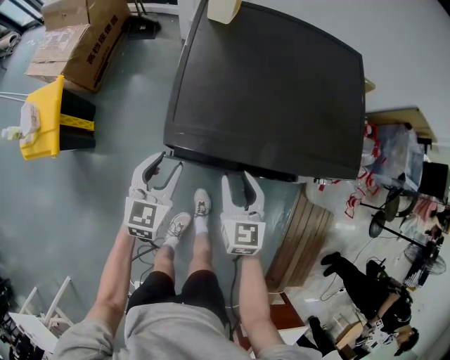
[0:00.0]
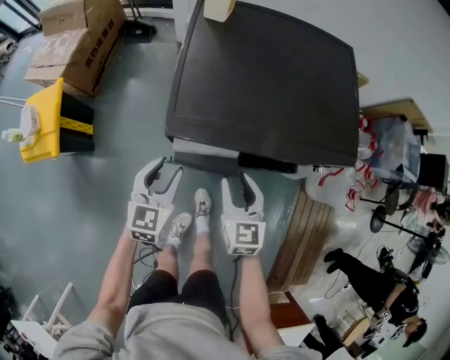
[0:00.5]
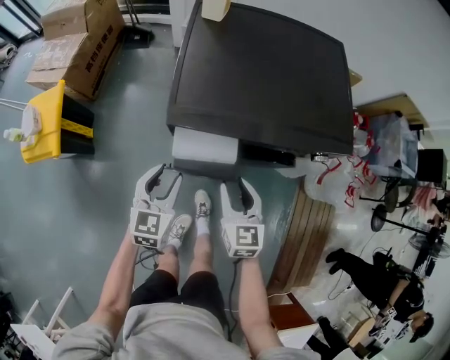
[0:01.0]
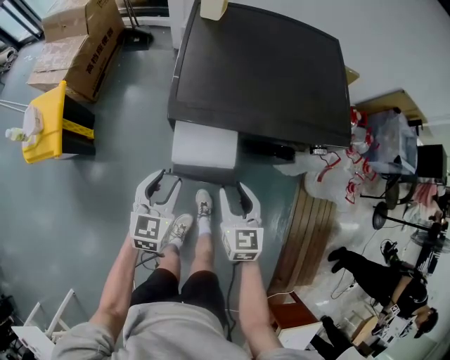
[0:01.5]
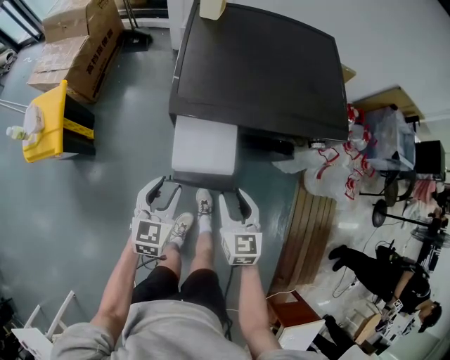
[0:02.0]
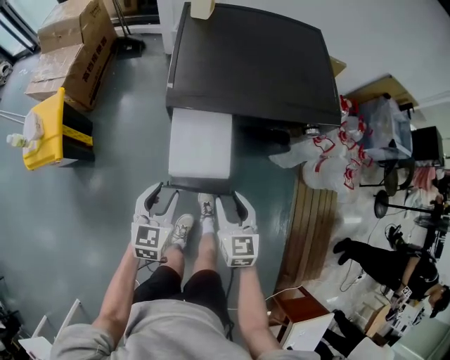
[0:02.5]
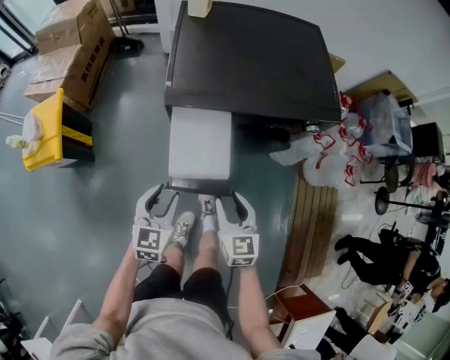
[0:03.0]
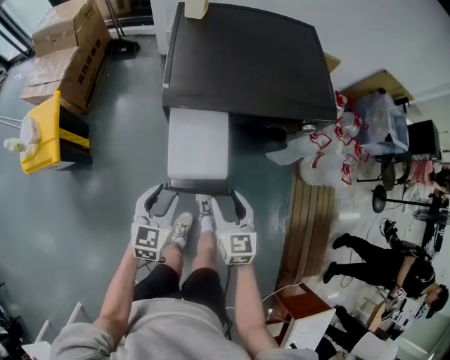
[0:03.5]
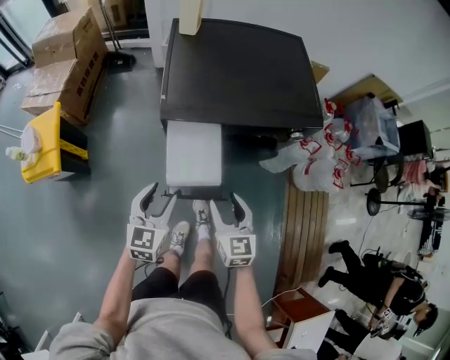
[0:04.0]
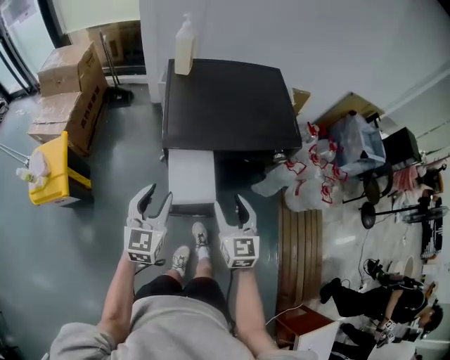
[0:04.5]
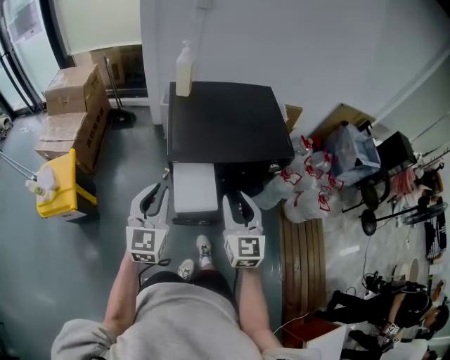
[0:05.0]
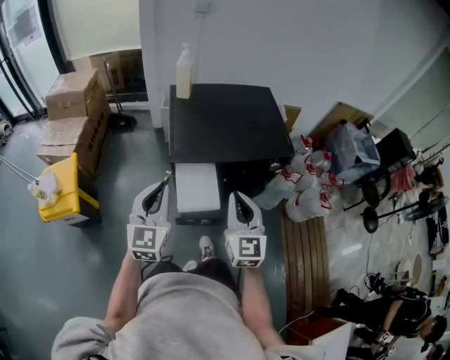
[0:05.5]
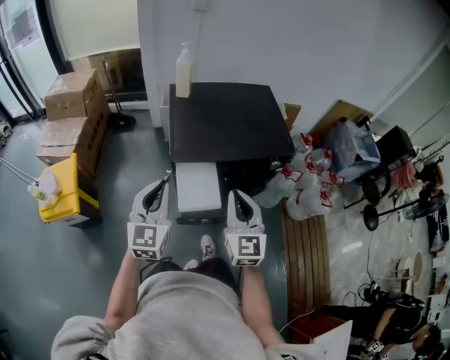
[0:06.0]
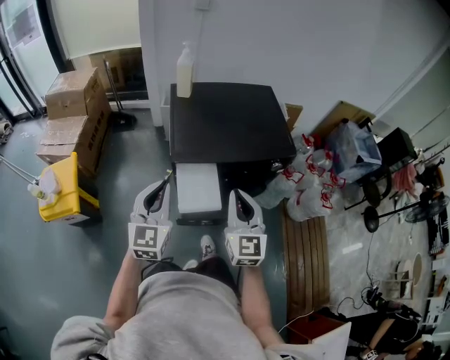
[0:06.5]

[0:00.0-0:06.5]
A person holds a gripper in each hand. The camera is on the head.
0:00.0 to 0:02.0: The grippers both shift backward by roughly 15 cm.
0:02.0 to 0:04.5: Both grippers move upward, approximately 15 cm.
0:04.5 to 0:06.5: Both grippers move upward, approximately 10 cm. The right gripper closes. The left gripper closes.

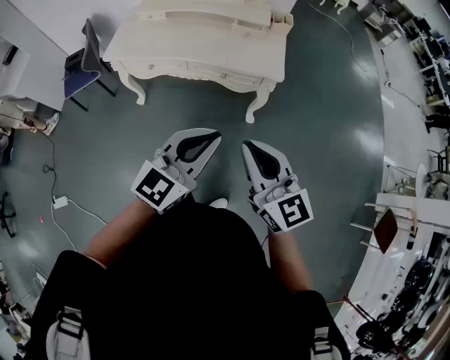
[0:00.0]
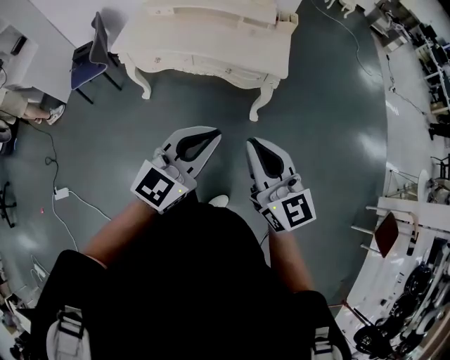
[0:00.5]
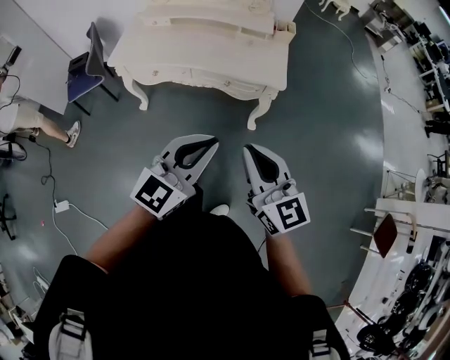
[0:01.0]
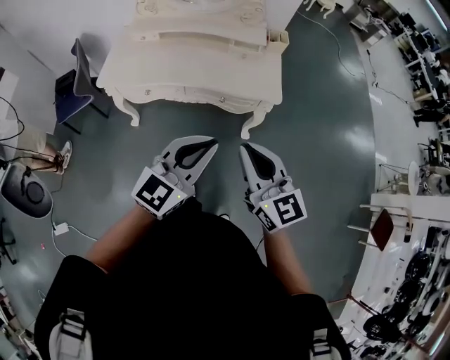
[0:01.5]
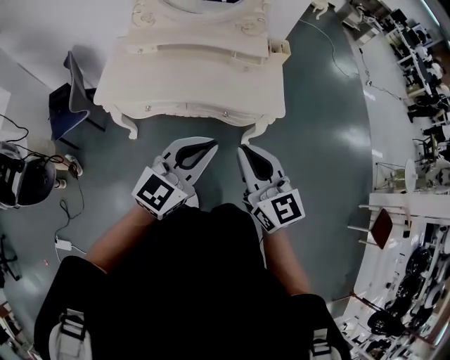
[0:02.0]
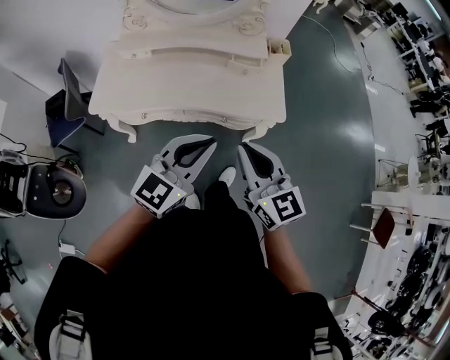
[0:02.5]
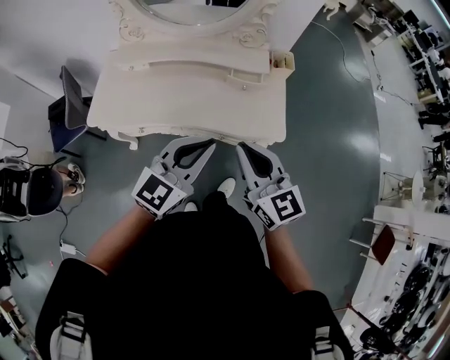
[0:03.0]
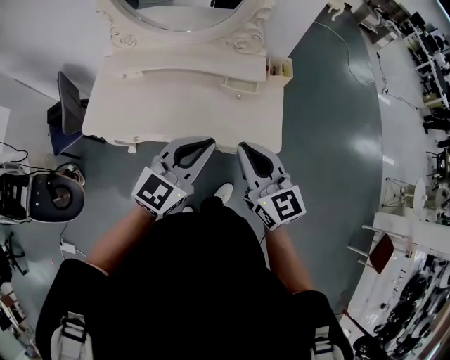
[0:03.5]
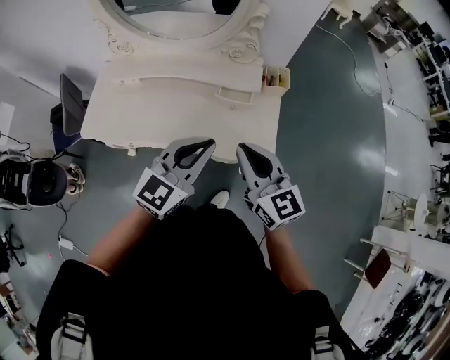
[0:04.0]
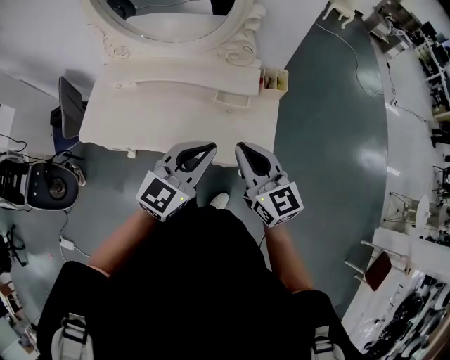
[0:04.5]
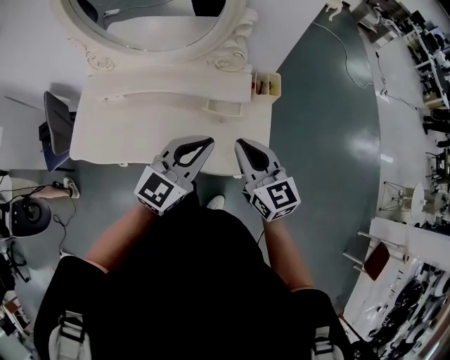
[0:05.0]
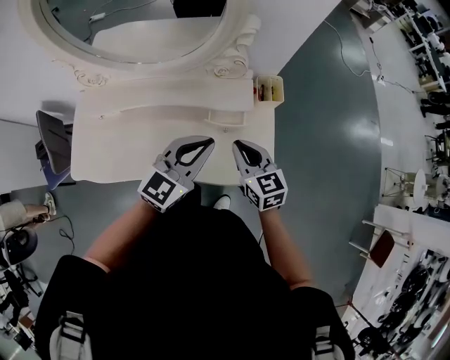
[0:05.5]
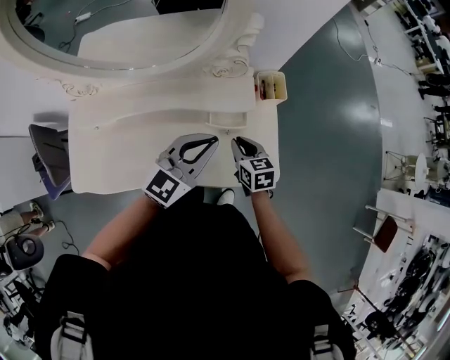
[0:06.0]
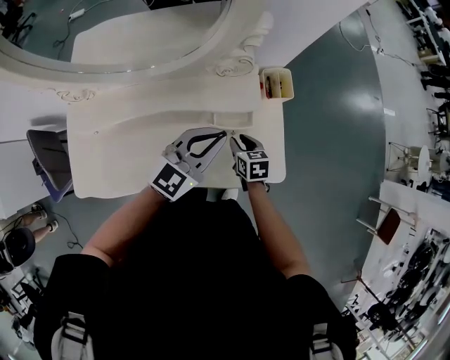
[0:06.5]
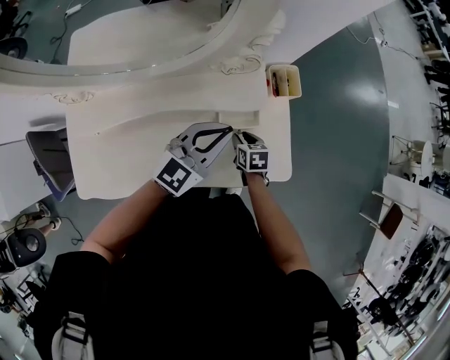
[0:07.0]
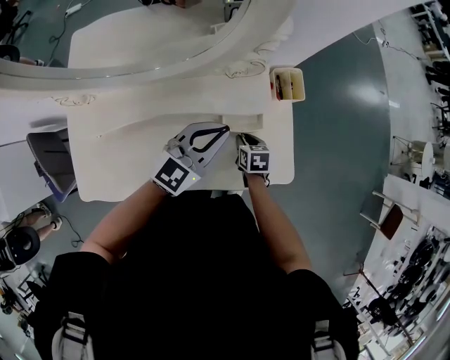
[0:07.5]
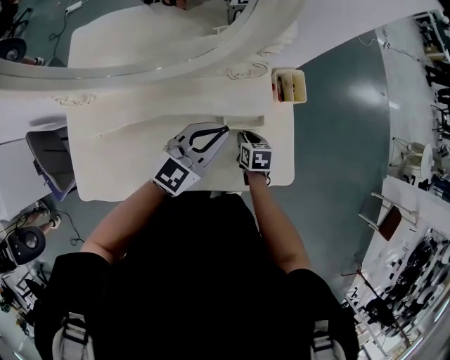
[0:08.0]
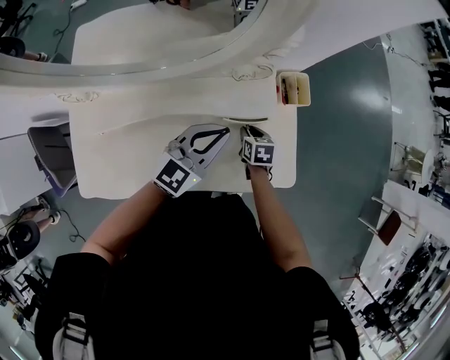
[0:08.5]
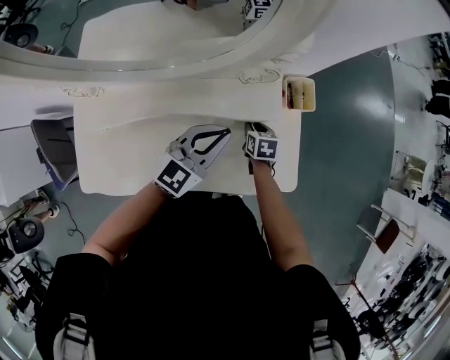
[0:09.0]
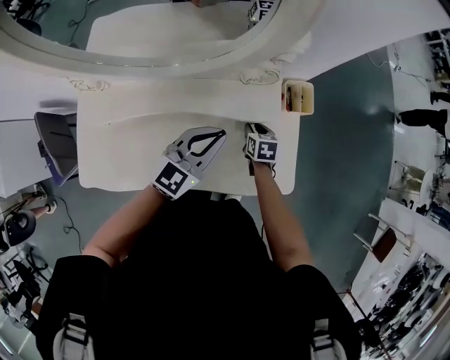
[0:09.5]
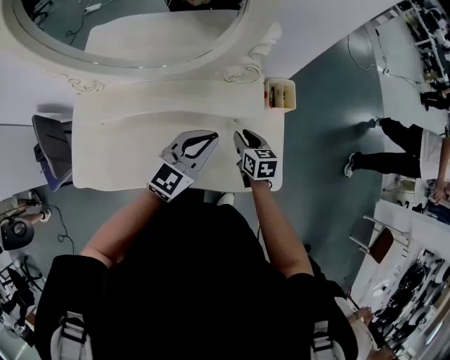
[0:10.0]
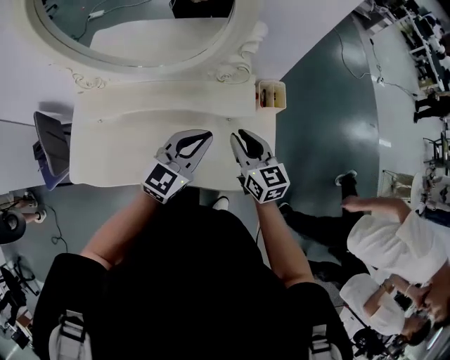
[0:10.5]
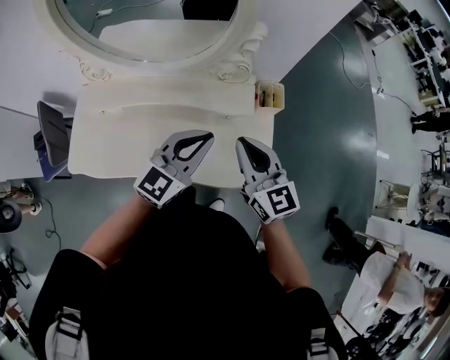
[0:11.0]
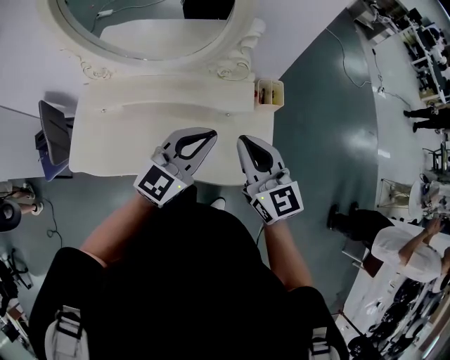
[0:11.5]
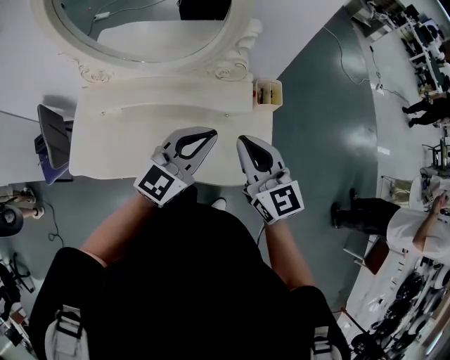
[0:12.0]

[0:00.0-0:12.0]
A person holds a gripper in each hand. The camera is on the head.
0:00.0 to 0:02.0: Both grippers travel together forward and to the left, roughly 20 cm.
0:02.0 to 0:04.0: Both grippers travel together forward, about 25 cm.
0:04.0 to 0:06.0: The right gripper goes roughly 30 cm downward and forward, and points its fingers about 30 degrees further downward; the left gripper moves forward, approximately 20 cm.
0:06.0 to 0:08.0: The left gripper shifts some 5 cm forward; the right gripper is displaced downward by about 10 cm, and changes its angle by roughly 20 degrees.
0:08.0 to 0:10.0: The right gripper is displaced upward by some 10 cm.
0:10.0 to 0:12.0: The left gripper travels upward and backward by roughly 10 cm; the right gripper heads upward and backward, covering roughly 30 cm, tips its fingers upward by about 30 degrees, and closes.

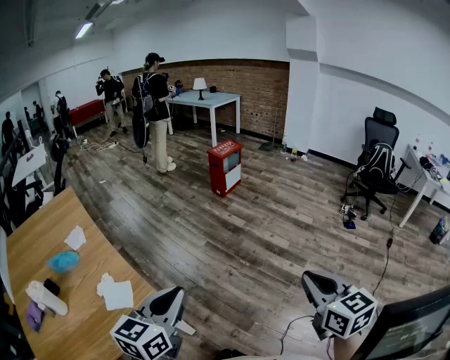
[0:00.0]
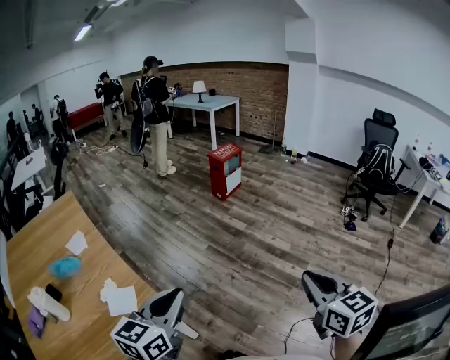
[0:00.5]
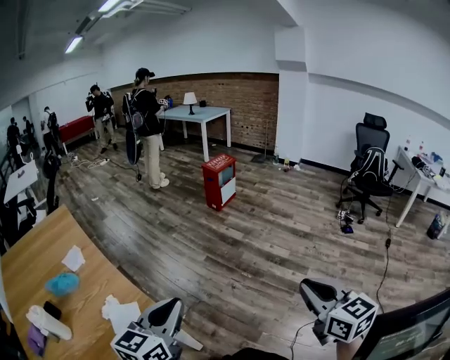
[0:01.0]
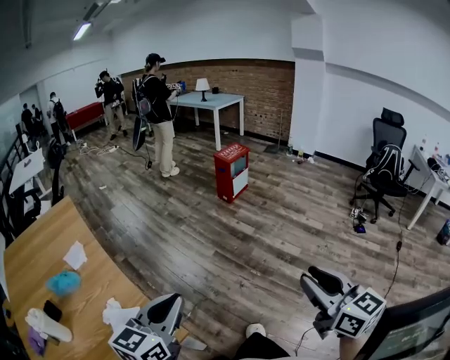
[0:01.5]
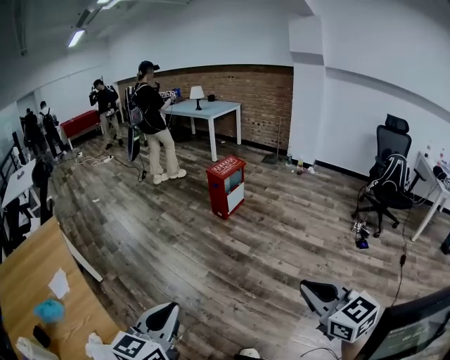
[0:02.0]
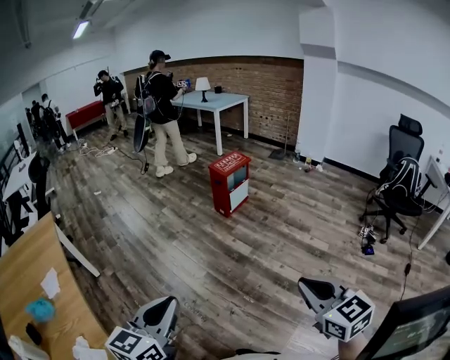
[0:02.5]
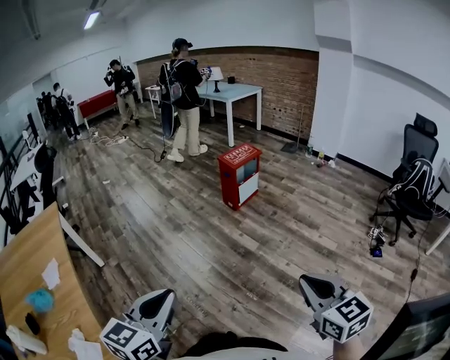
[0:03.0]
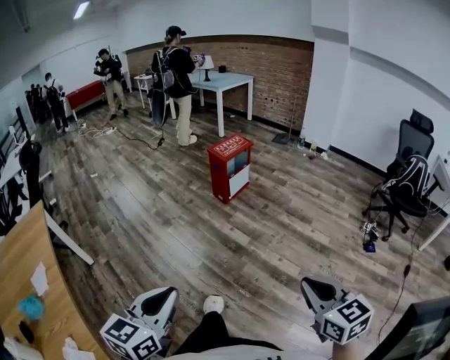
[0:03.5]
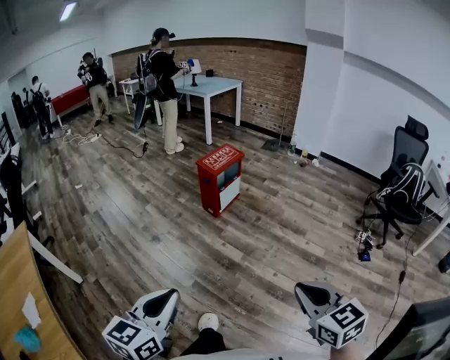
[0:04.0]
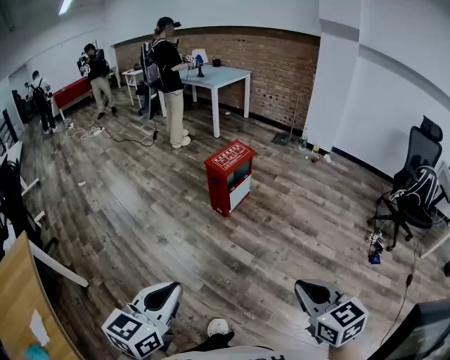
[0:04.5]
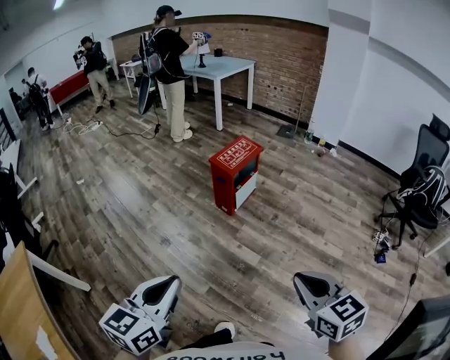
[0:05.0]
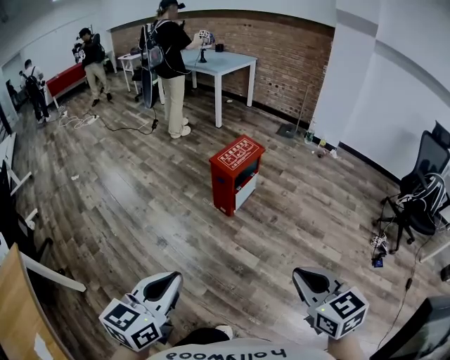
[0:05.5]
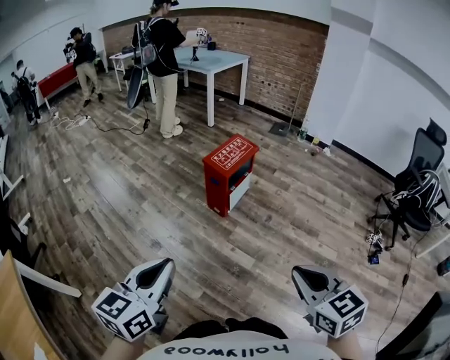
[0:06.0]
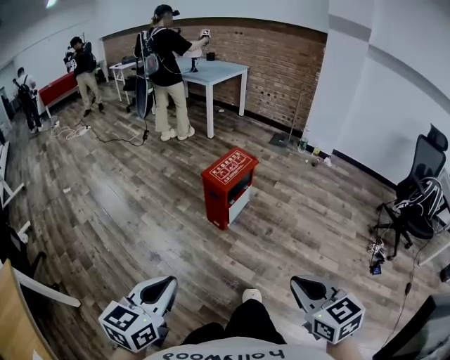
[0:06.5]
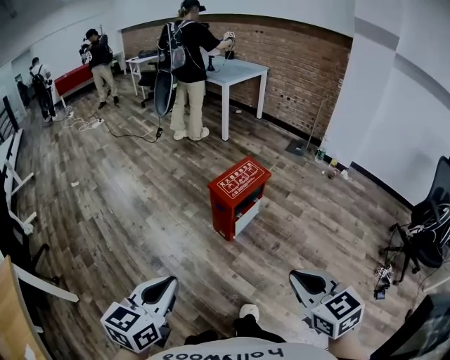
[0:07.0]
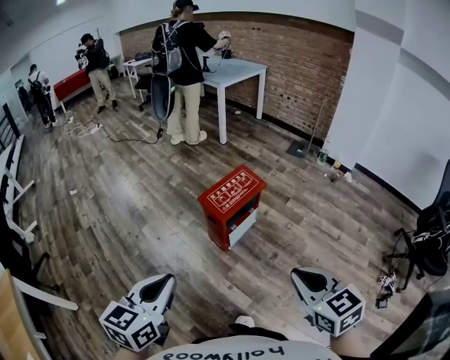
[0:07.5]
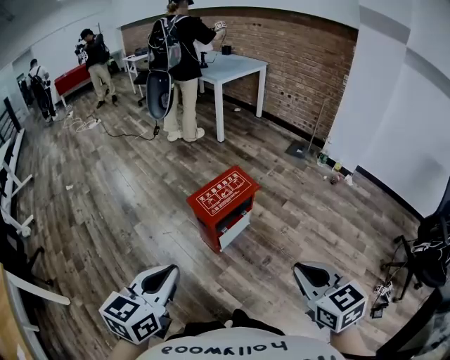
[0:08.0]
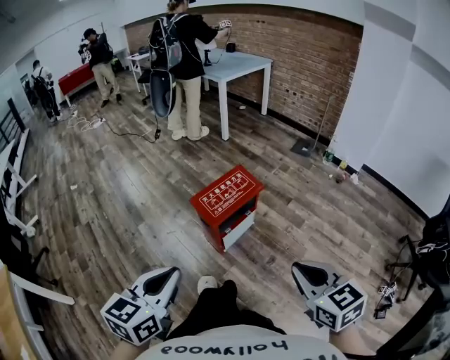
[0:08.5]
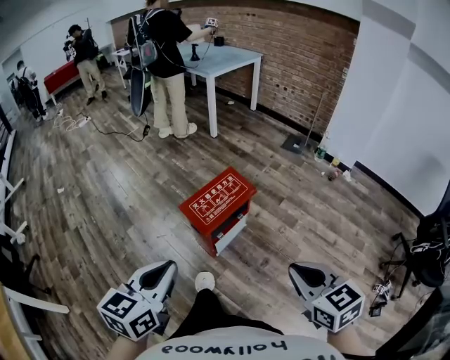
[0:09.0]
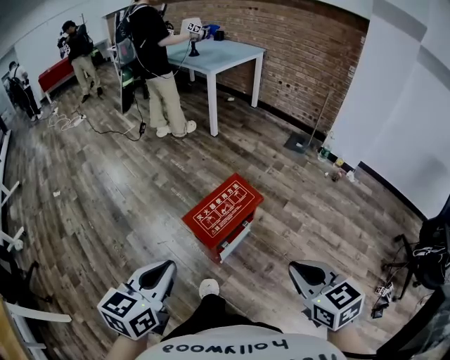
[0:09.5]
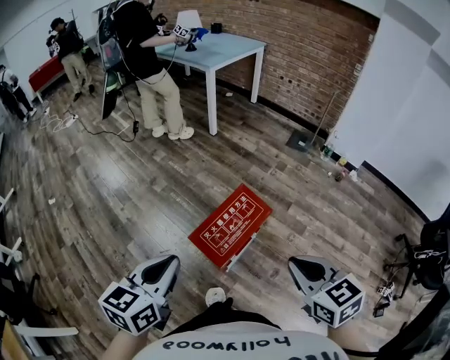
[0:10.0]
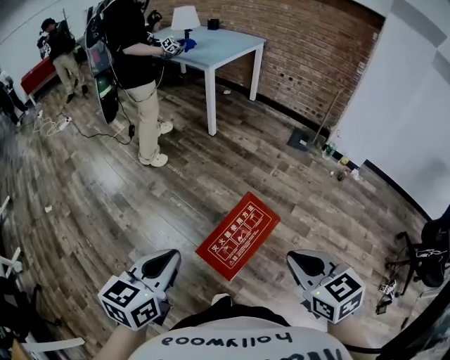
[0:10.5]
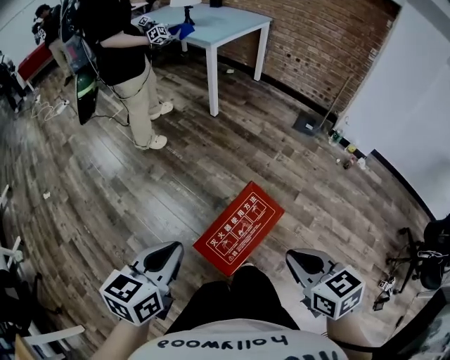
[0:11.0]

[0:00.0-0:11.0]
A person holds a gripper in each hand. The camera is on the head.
0:00.0 to 0:02.0: The grippers both shift forward by some 25 cm. The right gripper opens, then closes once more.
0:02.0 to 0:03.5: The right gripper goes roughly 20 cm forward, to the right and downward, while the left gripper heads forward, covering about 15 cm.
0:03.5 to 0:05.5: The grippers both shift forward by approximately 40 cm.
0:05.5 to 0:07.5: Both grippers move forward, some 30 cm.
0:07.5 to 0:09.0: Both grippers travel together forward and to the right, about 15 cm.
0:09.0 to 0:11.0: The grippers both shift forward by some 30 cm.
